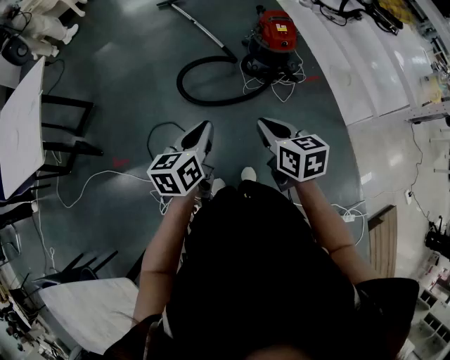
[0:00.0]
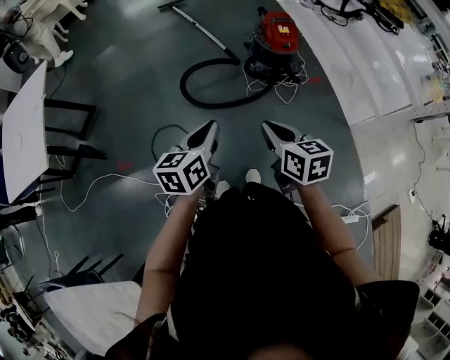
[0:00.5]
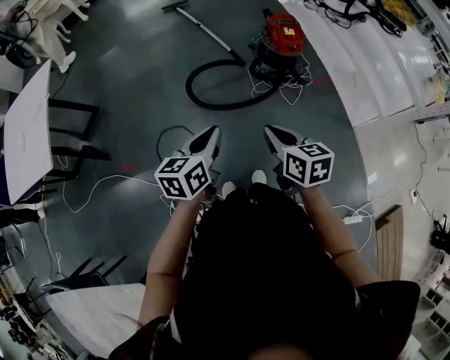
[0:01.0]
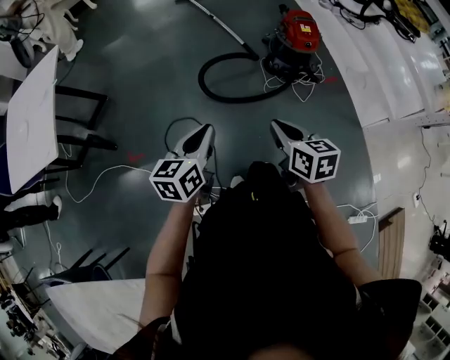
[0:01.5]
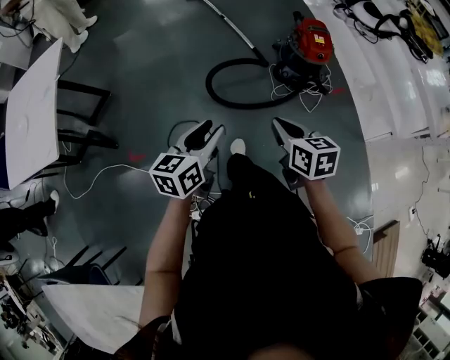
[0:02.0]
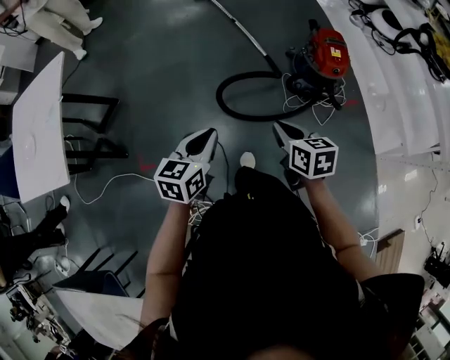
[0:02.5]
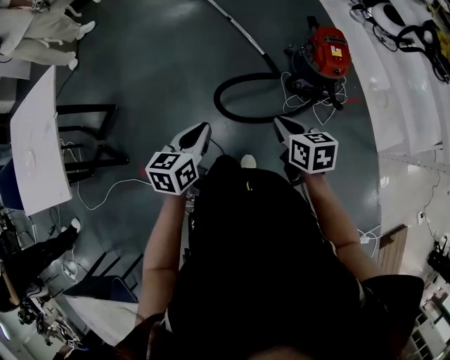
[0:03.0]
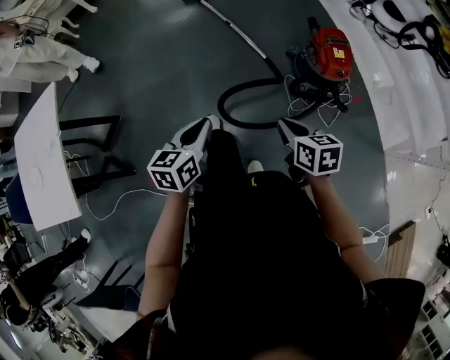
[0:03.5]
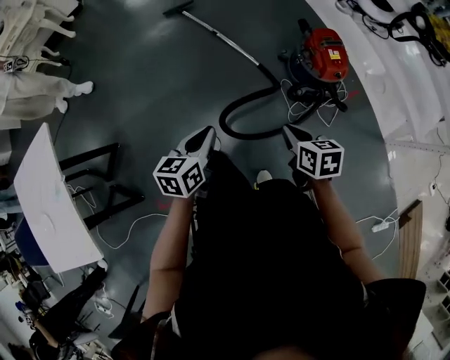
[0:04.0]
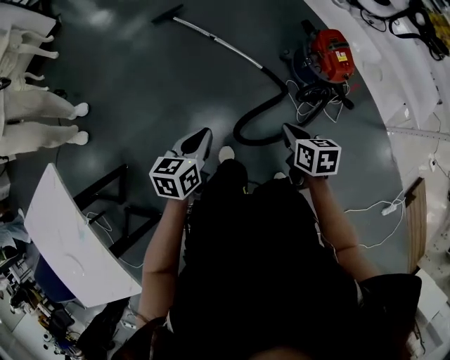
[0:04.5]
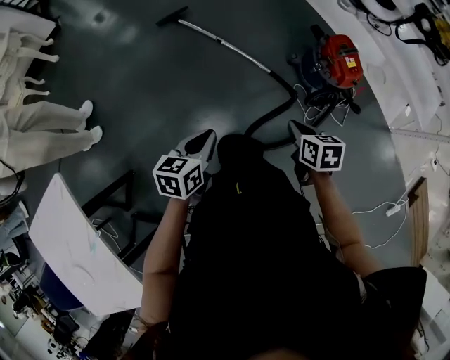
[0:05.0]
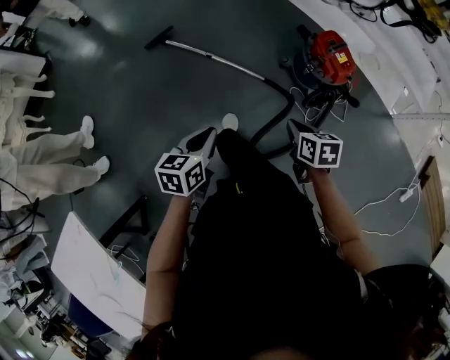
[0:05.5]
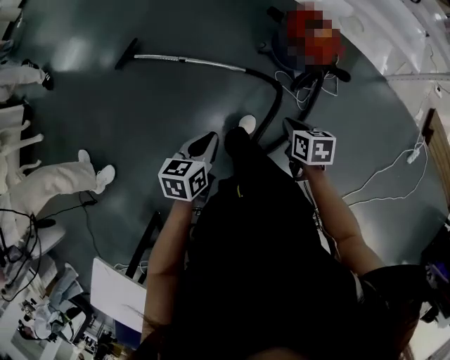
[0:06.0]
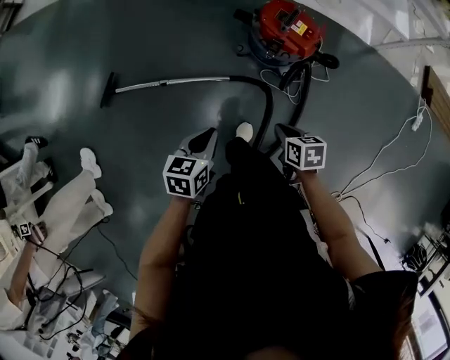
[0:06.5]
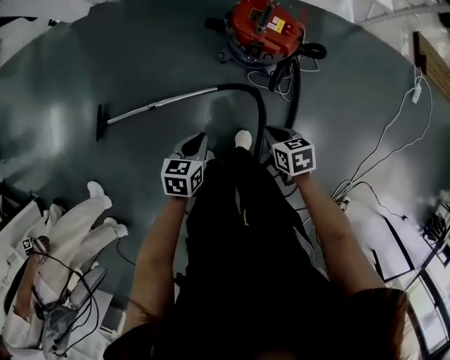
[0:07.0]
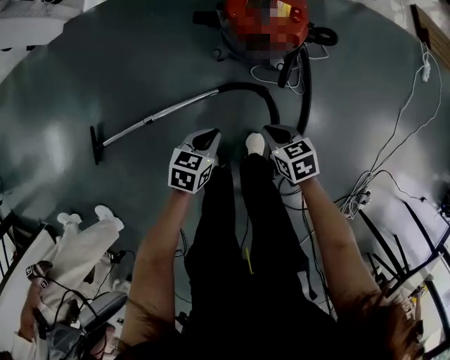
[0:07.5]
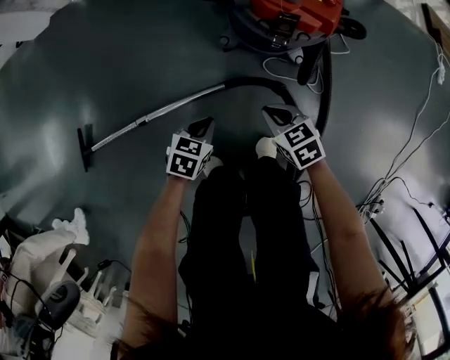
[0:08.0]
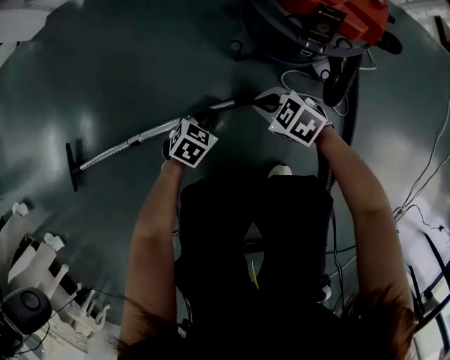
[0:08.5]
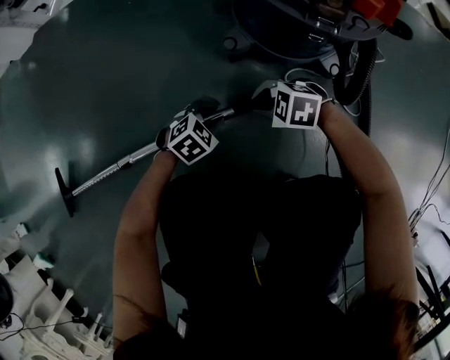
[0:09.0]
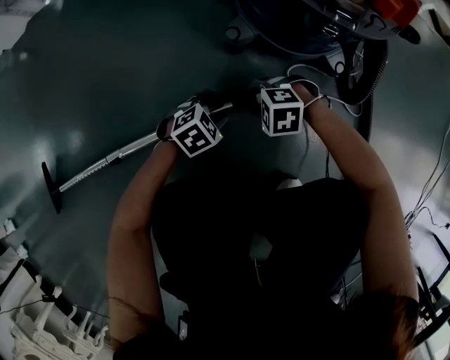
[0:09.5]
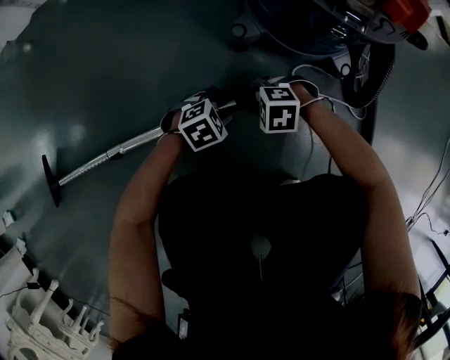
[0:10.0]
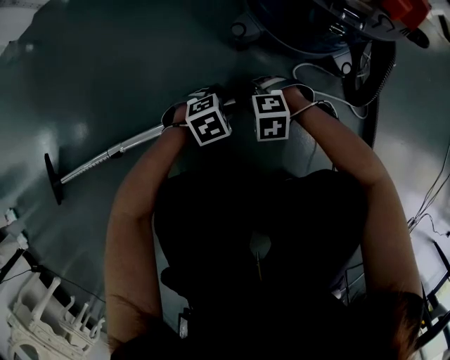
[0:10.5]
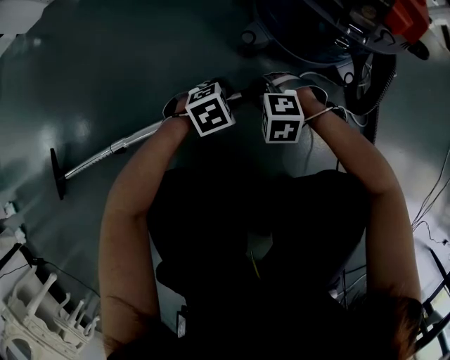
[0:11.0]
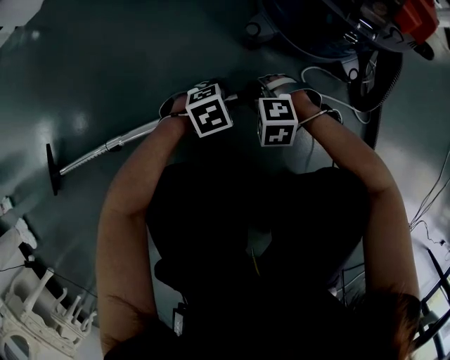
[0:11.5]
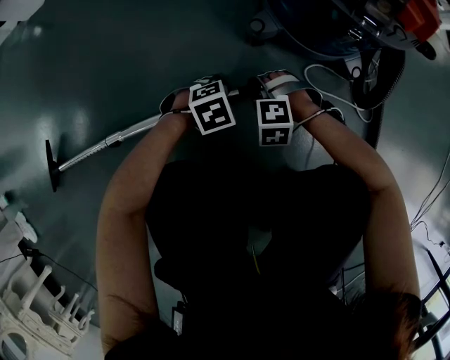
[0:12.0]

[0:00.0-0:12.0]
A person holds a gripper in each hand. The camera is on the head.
0:00.0 to 0:02.0: The two grippers go some 15 cm to the left and forward. The left gripper opens up.
0:02.0 to 0:04.0: Both grippers move forward, roughly 30 cm. The left gripper closes.
0:04.0 to 0:06.0: The right gripper ends up some 20 cm from where it was, and turns by about 40 degrees. The left gripper changes place by approximately 30 cm, and turns by some 40 degrees.
0:06.0 to 0:08.0: Both grippers travel together downward, approximately 35 cm. The left gripper changes its angle by approximately 50 degrees.
0:08.0 to 0:10.0: Both grippers travel together downward, some 30 cm. The right gripper rolls counterclockwise, seen from behind, by approximately 60 degrees, and opens. The left gripper changes its angle by roughly 40 degrees, and opens its fingers.
0:10.0 to 0:12.0: The right gripper rotates some 20 degrees.

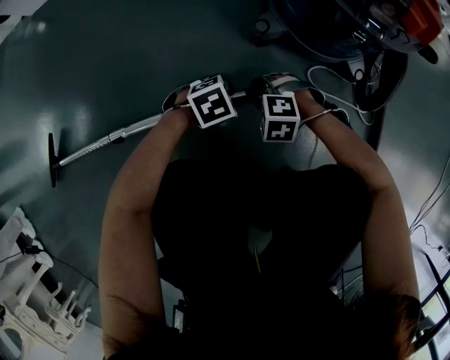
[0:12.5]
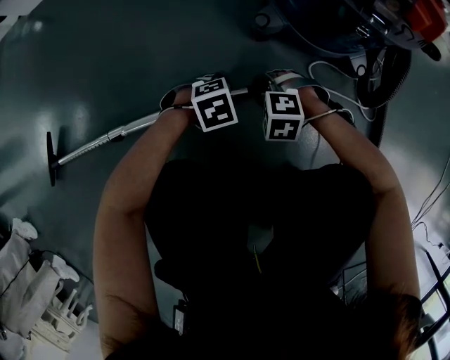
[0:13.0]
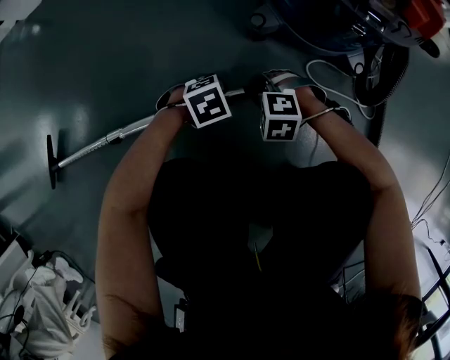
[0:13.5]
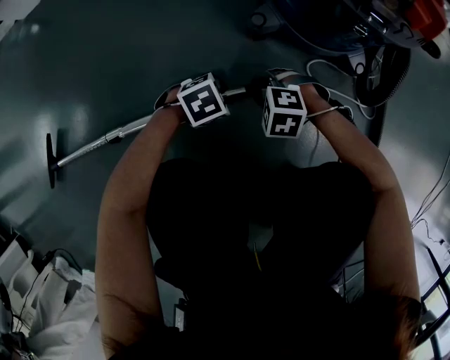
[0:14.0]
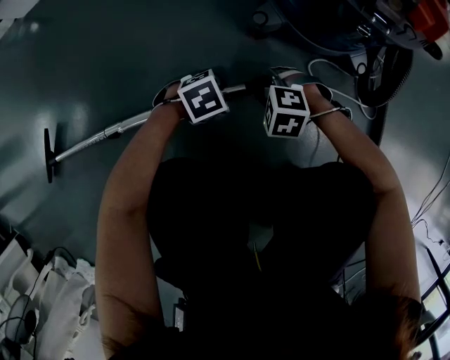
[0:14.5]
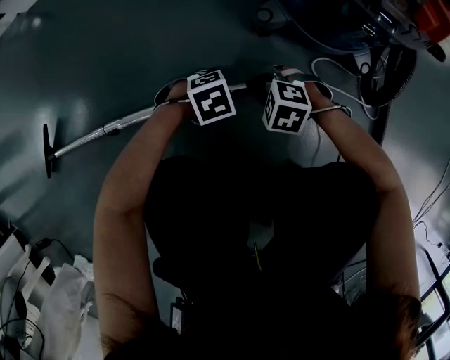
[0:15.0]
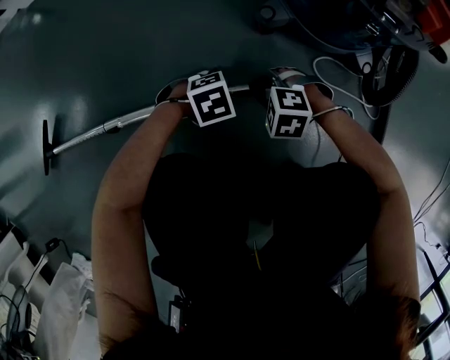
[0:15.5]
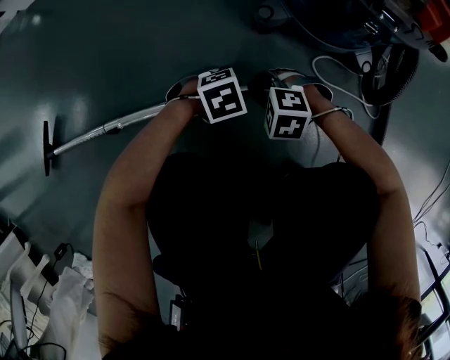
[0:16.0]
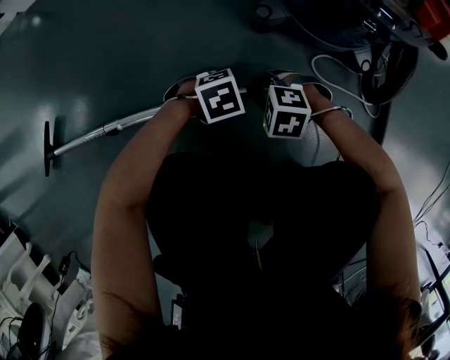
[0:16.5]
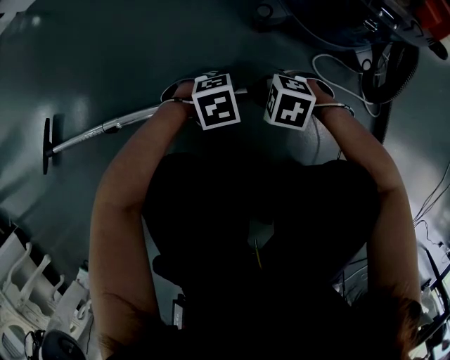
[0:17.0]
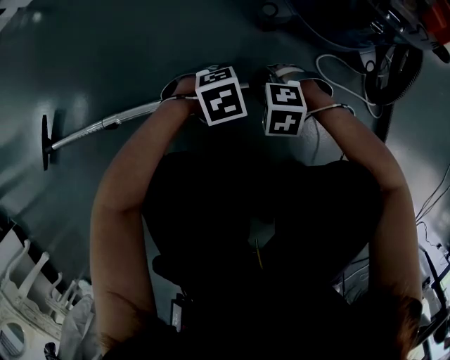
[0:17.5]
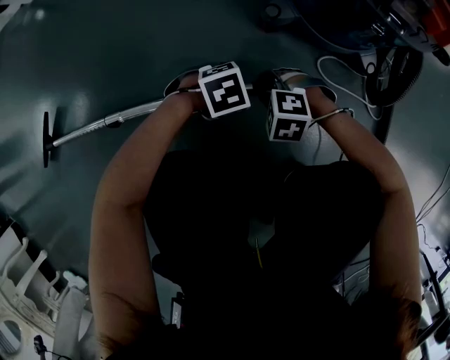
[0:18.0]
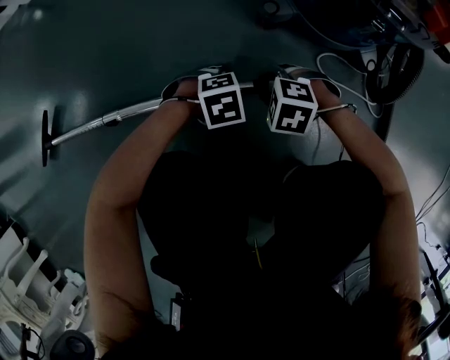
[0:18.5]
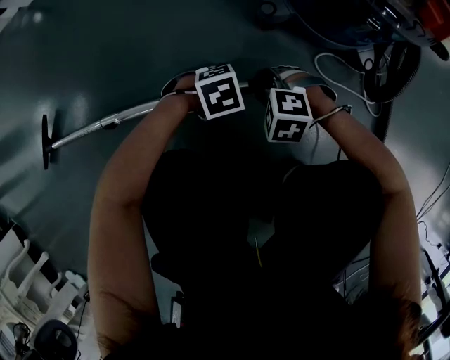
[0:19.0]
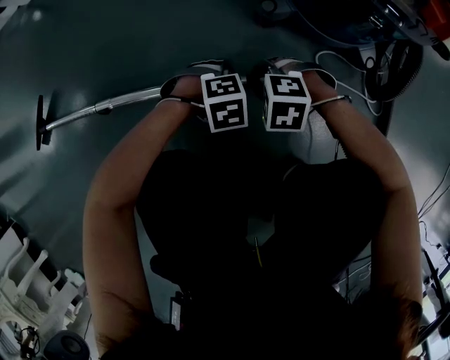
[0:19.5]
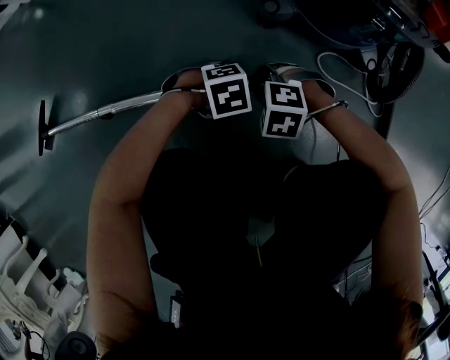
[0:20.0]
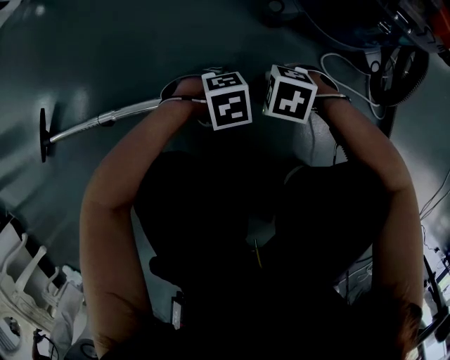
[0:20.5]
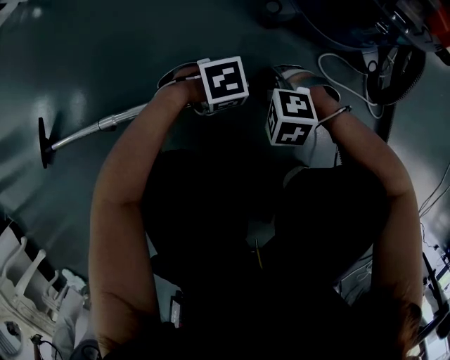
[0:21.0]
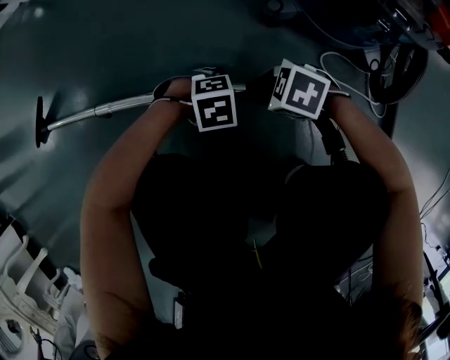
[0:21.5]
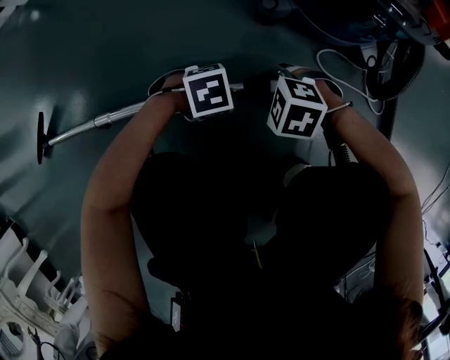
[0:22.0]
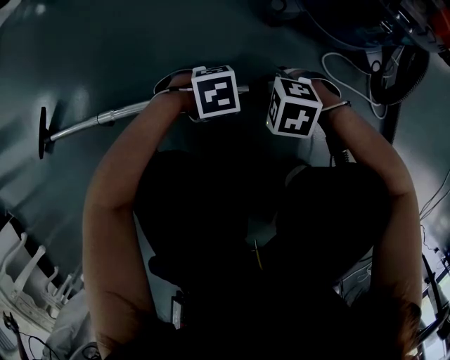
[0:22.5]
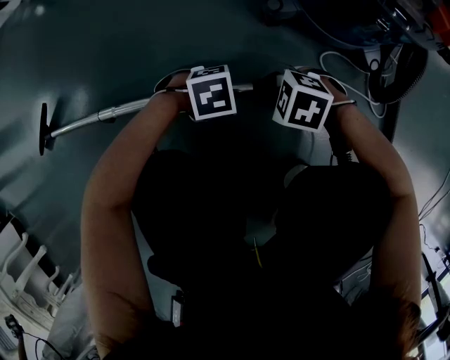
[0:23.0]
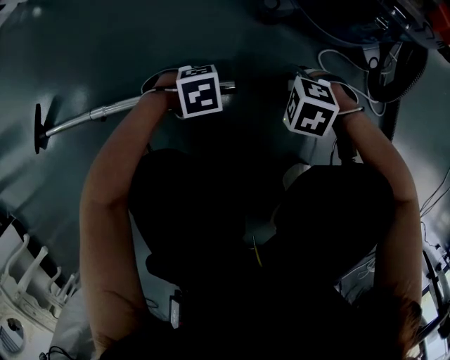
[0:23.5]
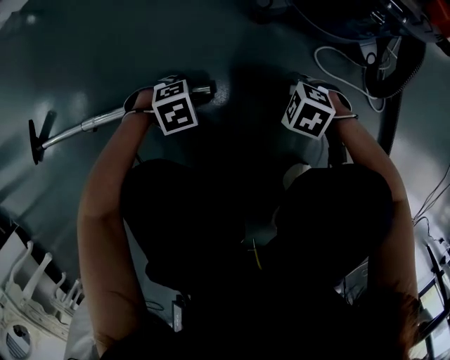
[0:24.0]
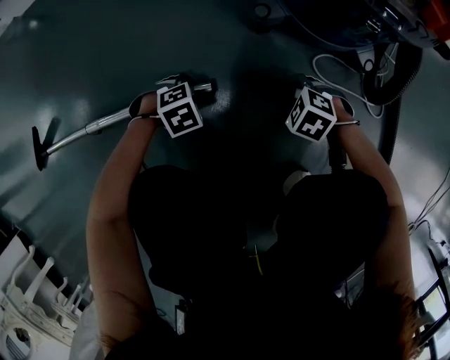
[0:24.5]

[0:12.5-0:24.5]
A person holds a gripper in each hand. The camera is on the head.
0:12.5 to 0:18.5: There are only small adjustments of the grippers.
0:18.5 to 0:20.5: There are only small adjustments of the grippers.
0:22.5 to 0:24.5: The left gripper moves some 10 cm; the right gripper moves approximately 10 cm.

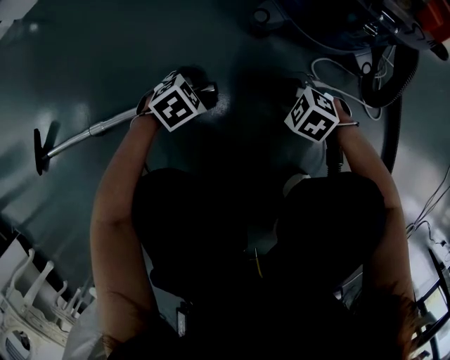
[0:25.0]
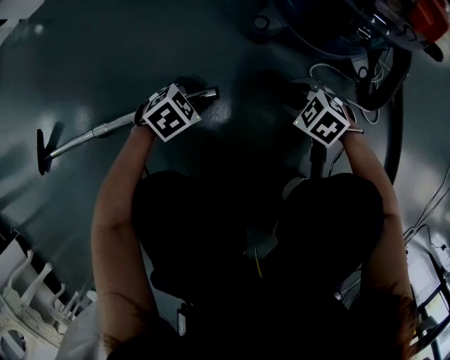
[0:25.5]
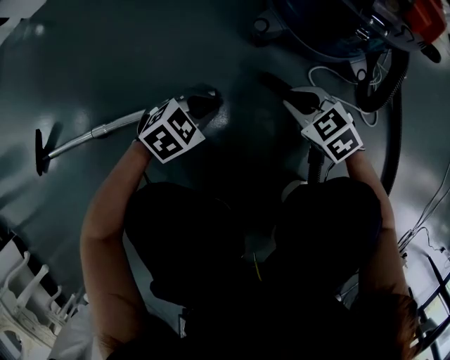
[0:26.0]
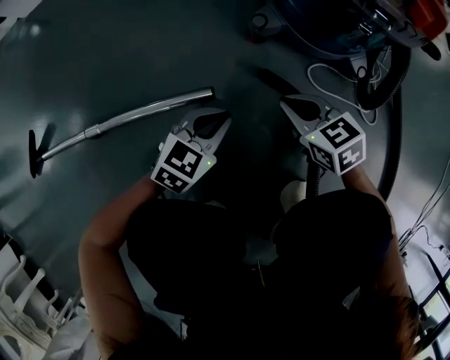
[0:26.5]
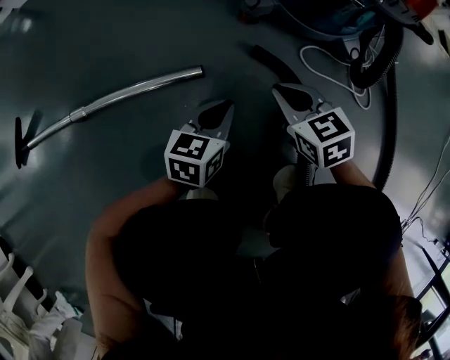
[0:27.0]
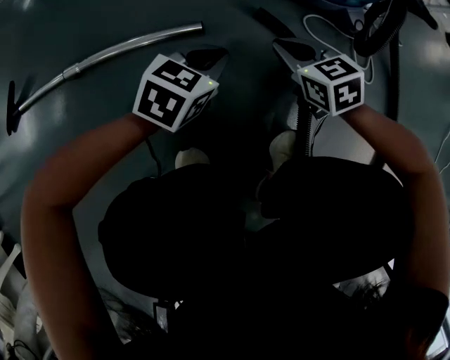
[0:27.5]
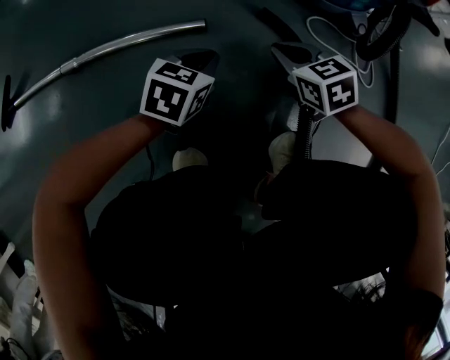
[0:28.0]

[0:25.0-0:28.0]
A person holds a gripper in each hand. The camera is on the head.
0:25.0 to 0:26.5: Both grippers move upward, approximately 10 cm. The right gripper swivels approximately 40 degrees, and closes; the left gripper angles its fingers upward, by about 30 degrees, and closes its fingers.
0:26.5 to 0:28.0: The right gripper moves approximately 5 cm, while the left gripper changes its angle by some 20 degrees.
